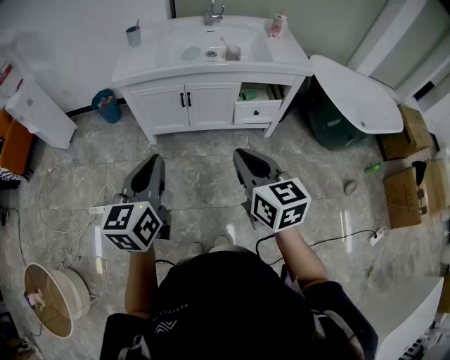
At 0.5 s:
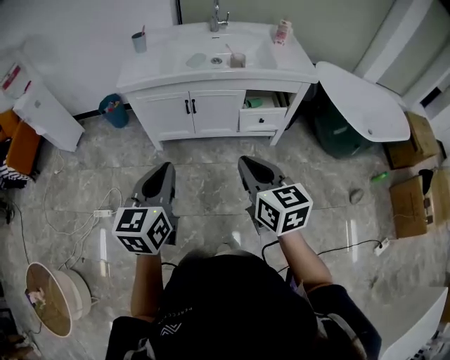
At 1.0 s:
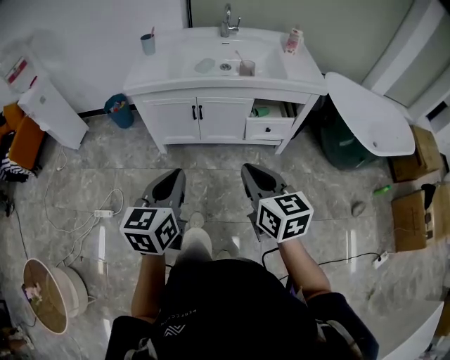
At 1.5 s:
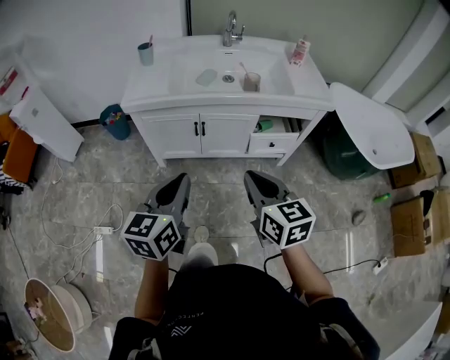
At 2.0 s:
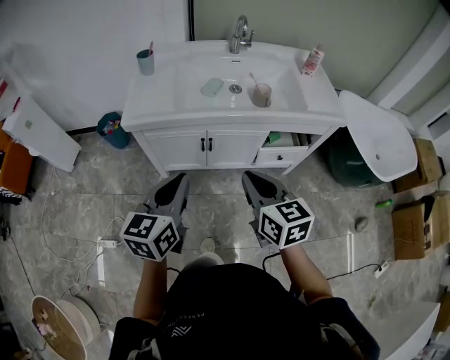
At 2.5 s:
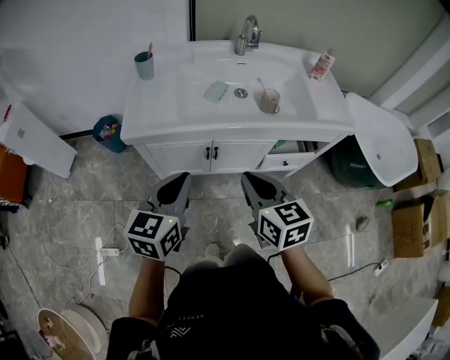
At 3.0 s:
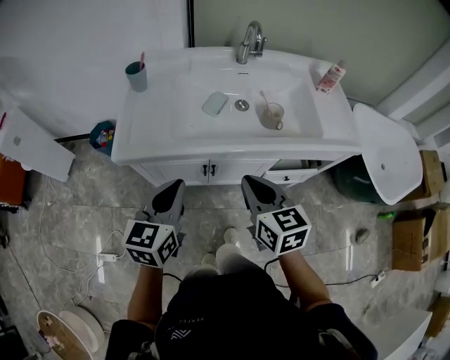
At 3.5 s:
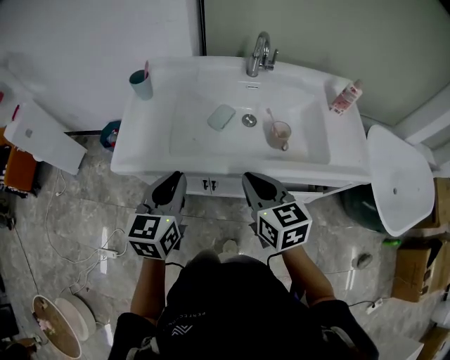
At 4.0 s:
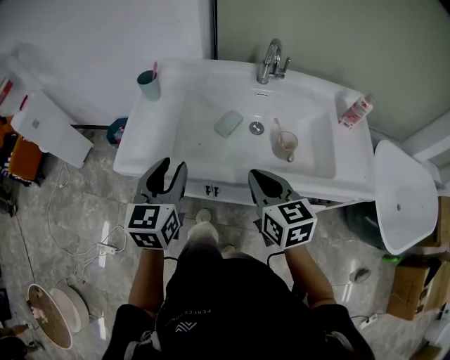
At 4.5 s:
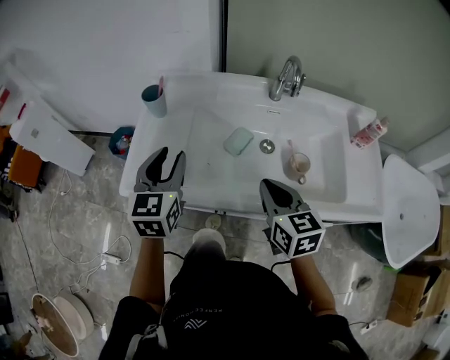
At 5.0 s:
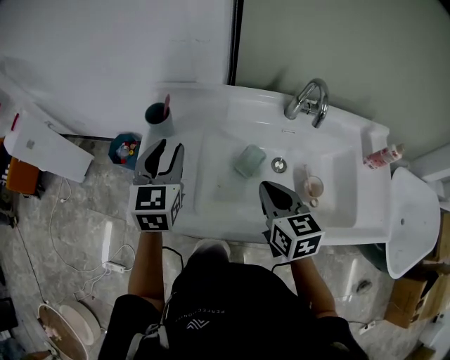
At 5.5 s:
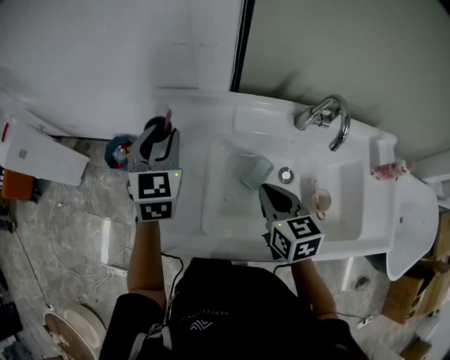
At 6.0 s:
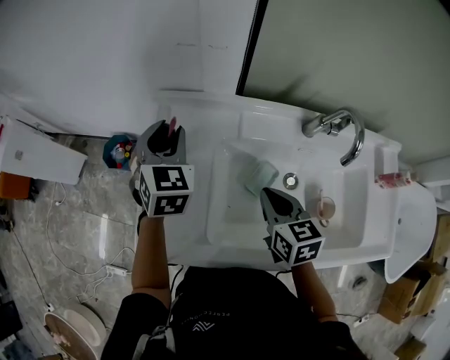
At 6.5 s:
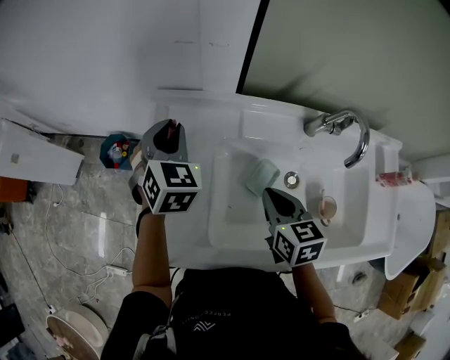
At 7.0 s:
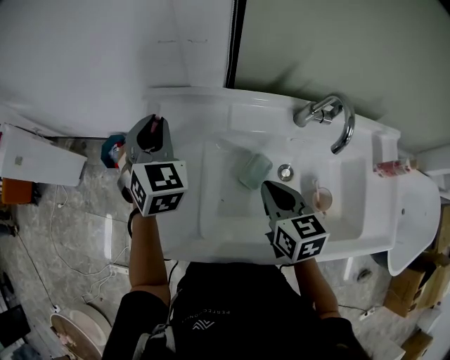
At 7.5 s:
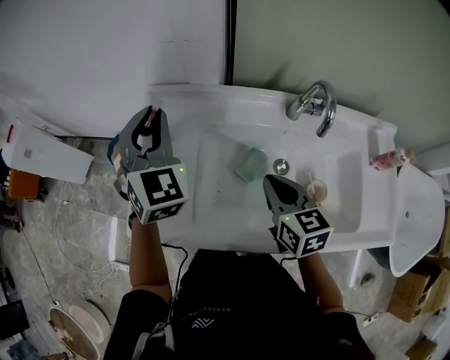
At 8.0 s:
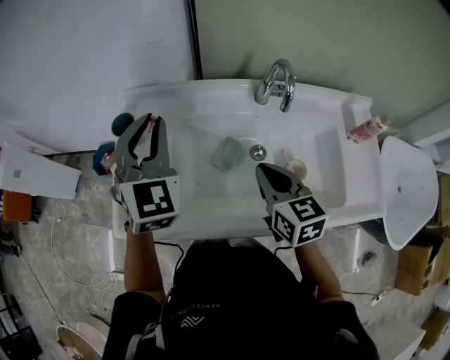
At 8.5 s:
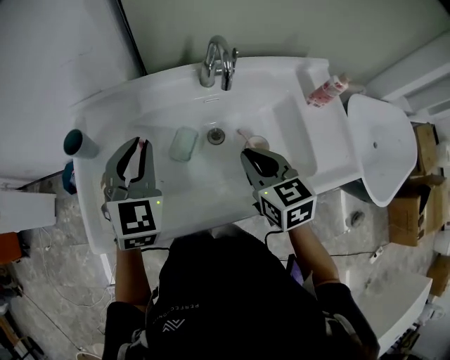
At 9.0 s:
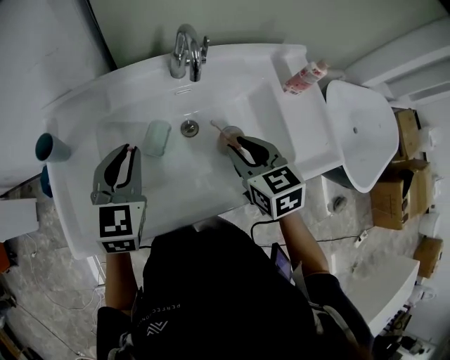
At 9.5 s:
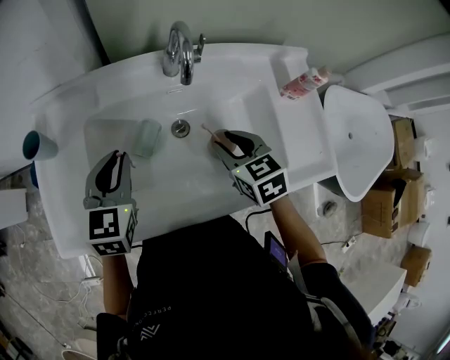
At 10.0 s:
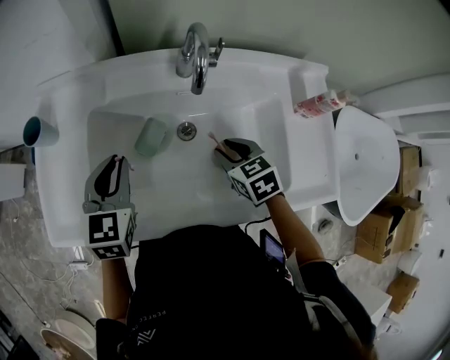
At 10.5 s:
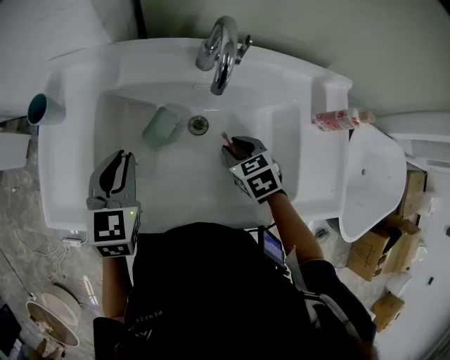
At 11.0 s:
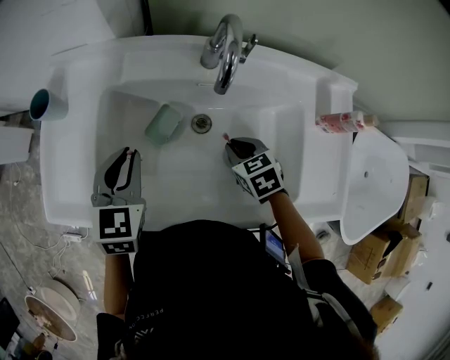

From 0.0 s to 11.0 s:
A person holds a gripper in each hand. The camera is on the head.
From 0.0 s to 2.0 s: Both grippers travel together forward, about 25 cm.
From 2.0 s to 3.5 s: The two grippers go roughly 25 cm forward.
From 3.5 s to 5.5 s: The grippers both shift forward by about 30 cm. The left gripper swivels roughly 30 degrees, and opens its fingers.
From 5.5 s to 7.5 s: The left gripper travels upward by some 10 cm, and swivels some 20 degrees.
From 7.5 s to 9.0 s: The left gripper moves some 20 cm, and swivels some 40 degrees, while the right gripper ends up approximately 15 cm from where it was, and opens its fingers.
From 9.0 s to 11.0 s: The left gripper heads downward, covering about 5 cm, and turns by about 20 degrees; the right gripper is displaced downward and forward by roughly 15 cm, and swivels approximately 30 degrees.

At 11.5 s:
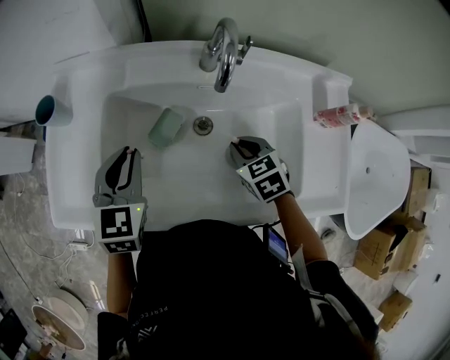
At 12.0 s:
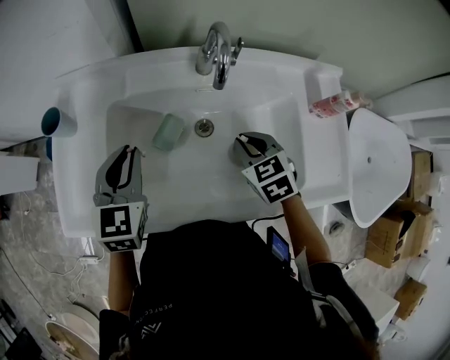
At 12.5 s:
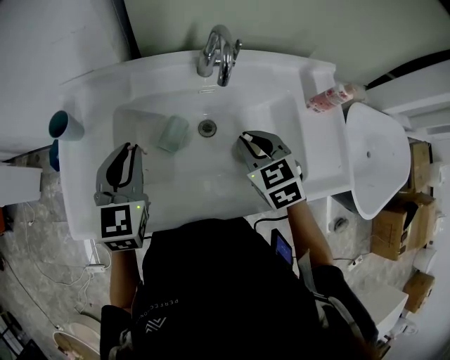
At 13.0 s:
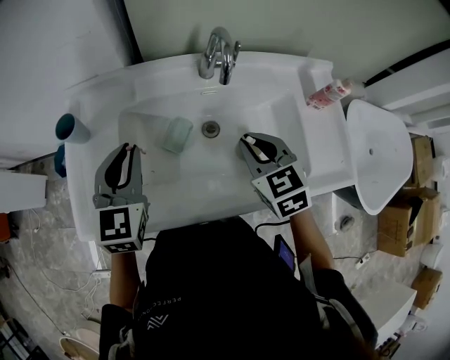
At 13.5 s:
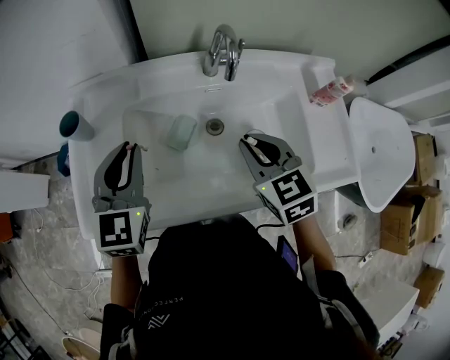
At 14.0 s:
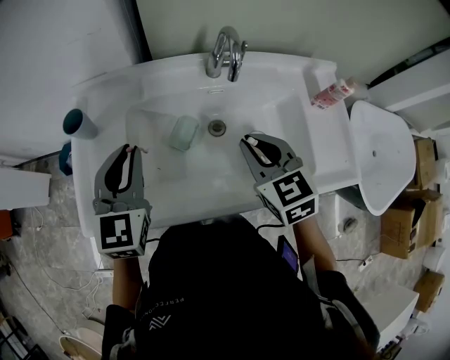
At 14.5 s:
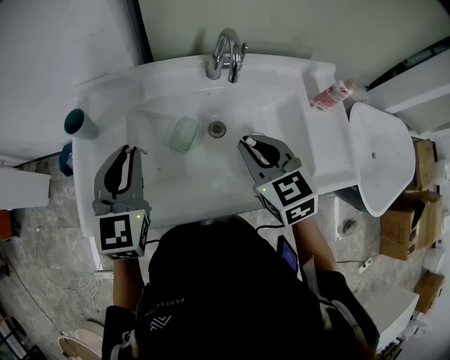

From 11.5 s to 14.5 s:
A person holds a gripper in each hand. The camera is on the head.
From 11.5 s to 13.0 s: The right gripper goes some 15 cm upward; the left gripper goes about 5 cm upward.
From 13.0 s to 14.5 s: The grippers move only a little.

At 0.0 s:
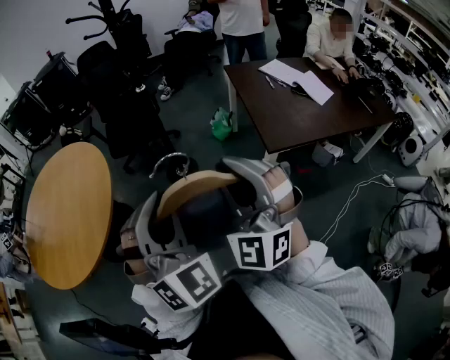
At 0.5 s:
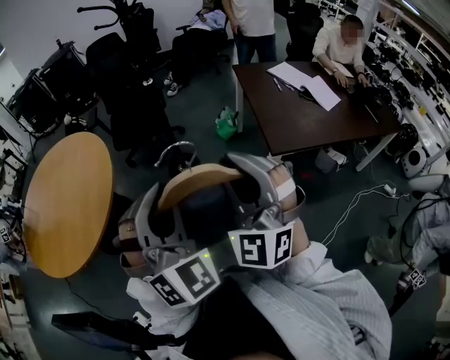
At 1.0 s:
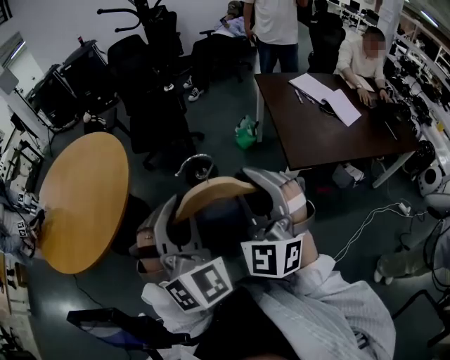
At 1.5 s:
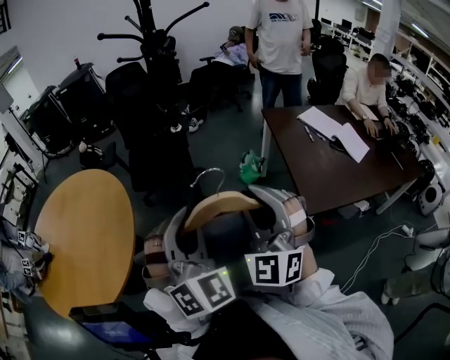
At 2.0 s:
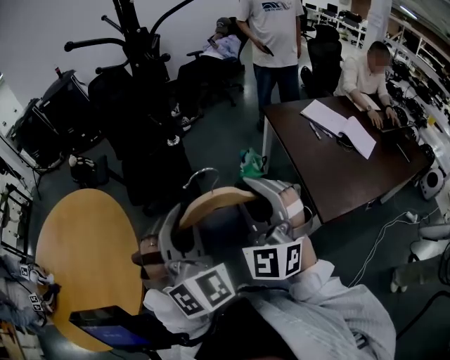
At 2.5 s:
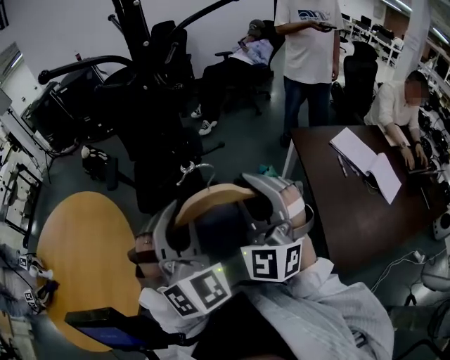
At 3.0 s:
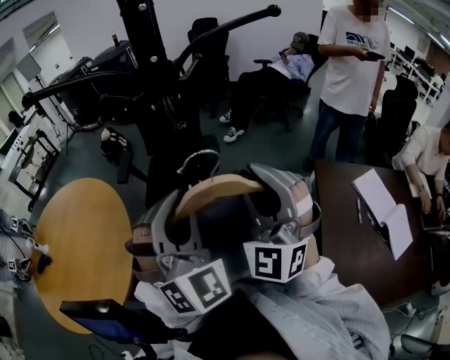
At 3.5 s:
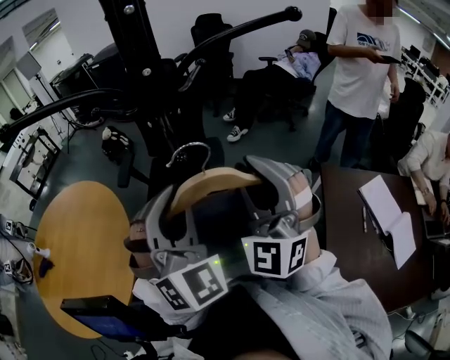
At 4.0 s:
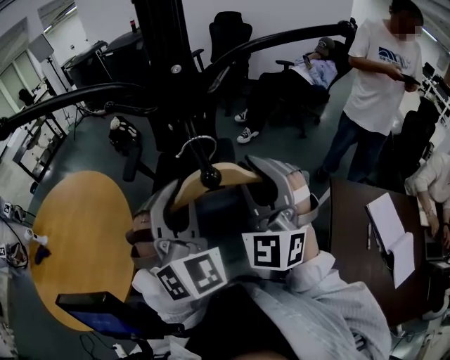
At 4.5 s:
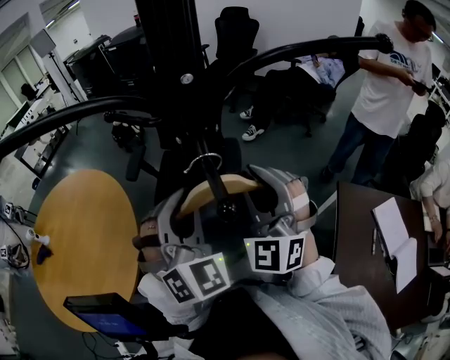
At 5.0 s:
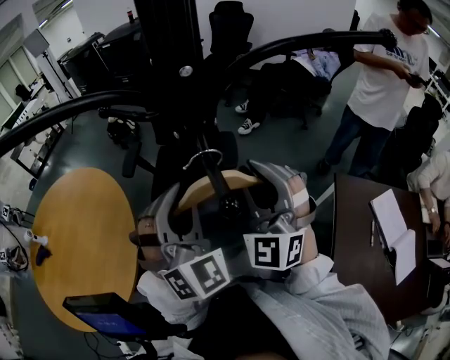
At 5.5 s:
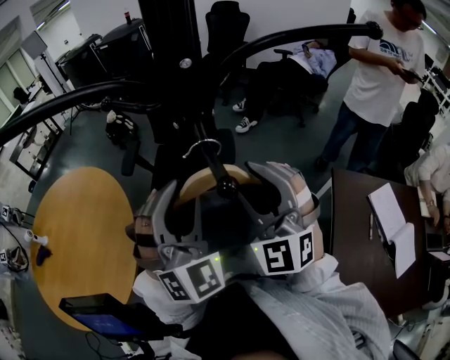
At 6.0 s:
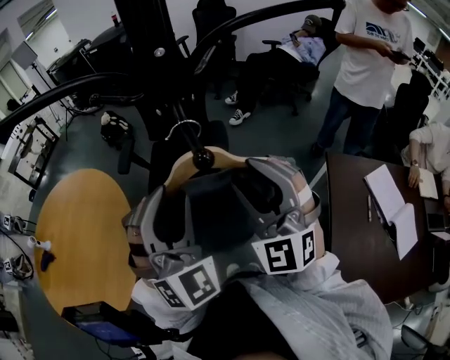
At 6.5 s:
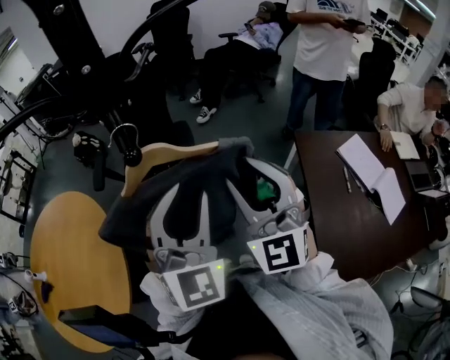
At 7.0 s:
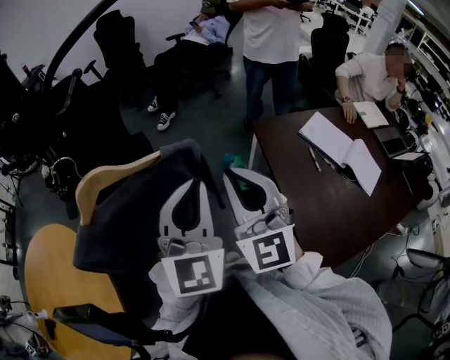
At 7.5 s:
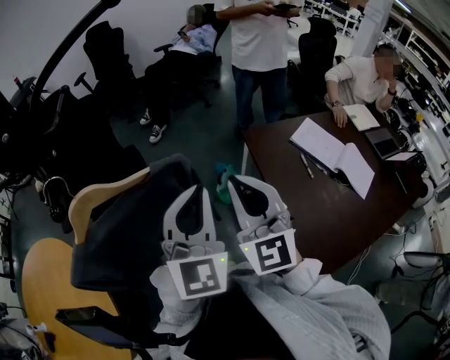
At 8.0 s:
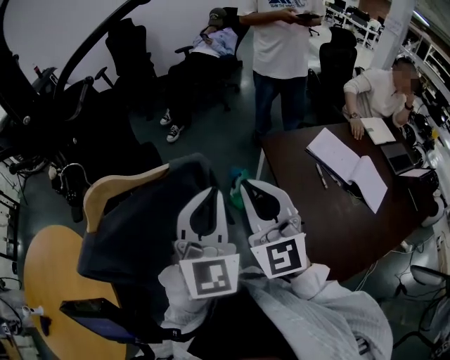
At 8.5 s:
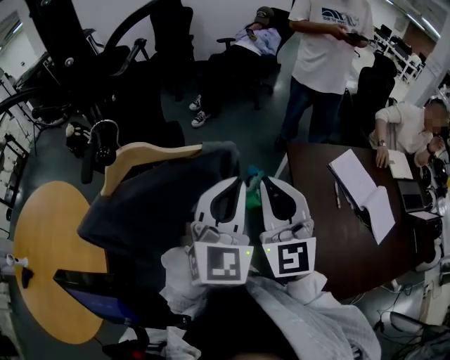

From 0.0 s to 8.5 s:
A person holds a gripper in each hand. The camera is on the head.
From 0.0 s to 2.0 s: The grippers both shift forward by approximately 35 cm.
From 2.0 s to 4.0 s: The grippers both shift forward by about 40 cm. The right gripper rotates approximately 20 degrees, while the left gripper changes its angle by approximately 20 degrees.
From 4.0 s to 6.5 s: Both grippers travel together backward and to the right, approximately 10 cm. The right gripper turns by about 20 degrees, while the left gripper turns by roughly 30 degrees, and opens up.
From 6.5 s to 8.5 s: The left gripper travels to the right by roughly 15 cm, and closes its fingers. Meanwhile the right gripper is displaced to the right and downward by about 15 cm, and closes its fingers.

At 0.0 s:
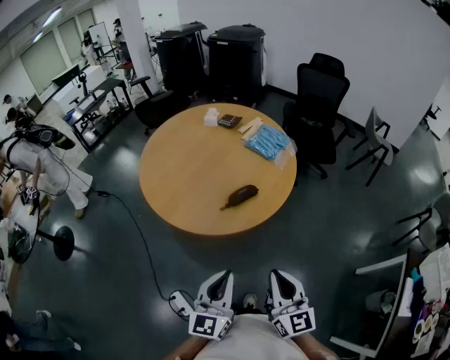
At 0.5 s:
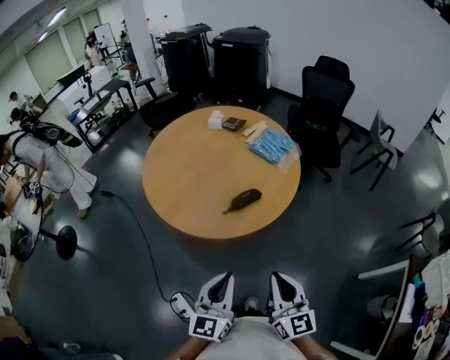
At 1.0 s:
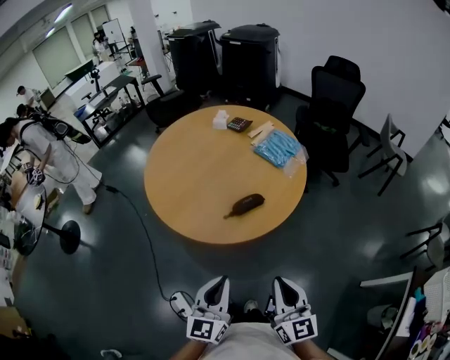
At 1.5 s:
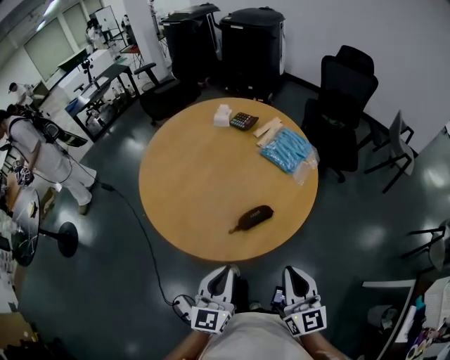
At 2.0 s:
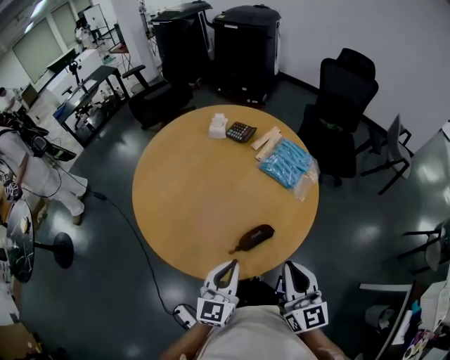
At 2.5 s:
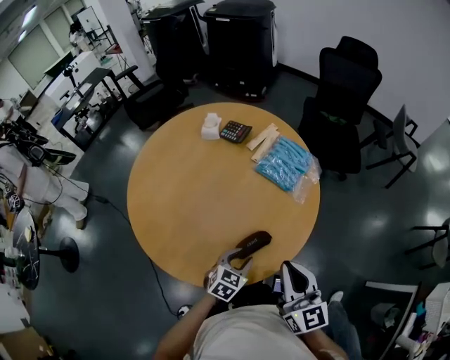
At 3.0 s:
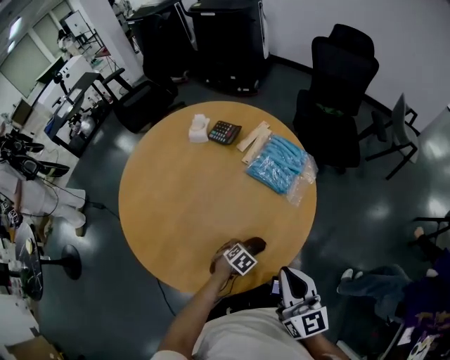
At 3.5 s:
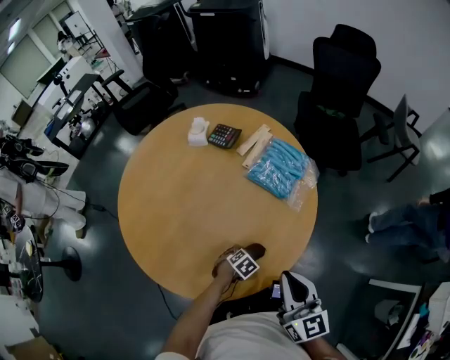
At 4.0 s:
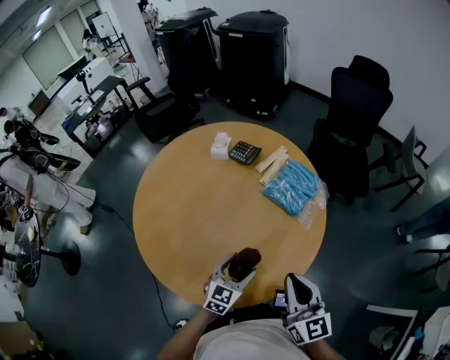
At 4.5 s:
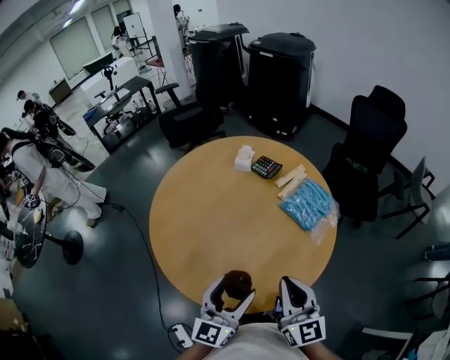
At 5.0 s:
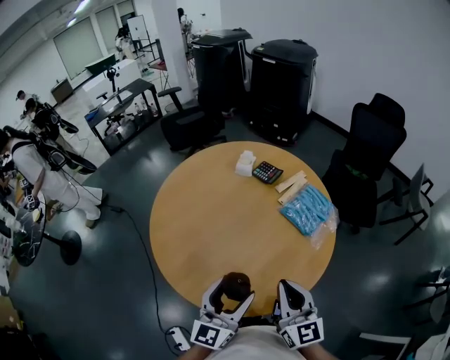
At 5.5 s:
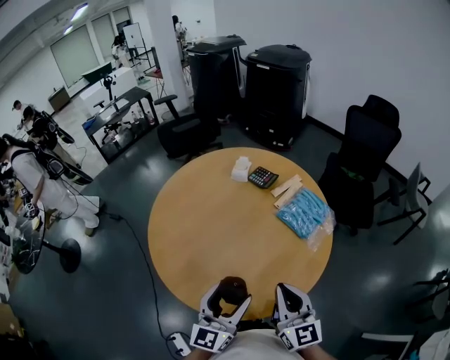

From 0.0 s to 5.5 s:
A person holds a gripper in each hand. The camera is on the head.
From 0.0 s to 2.0 s: The grippers both shift forward by roughly 30 cm.
From 2.0 s to 3.5 s: The right gripper ends up some 10 cm from where it was. Meanwhile the left gripper heads downward, covering roughly 35 cm, tilts its fingers roughly 60 degrees downward, and opens its fingers.
From 3.5 s to 5.5 s: The right gripper changes place by about 10 cm. Meanwhile the left gripper is displaced upward by roughly 40 cm, and points its fingers some 70 degrees further upward.
